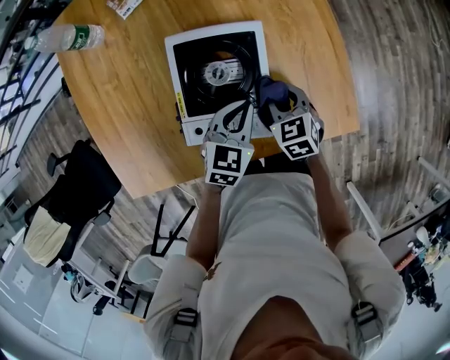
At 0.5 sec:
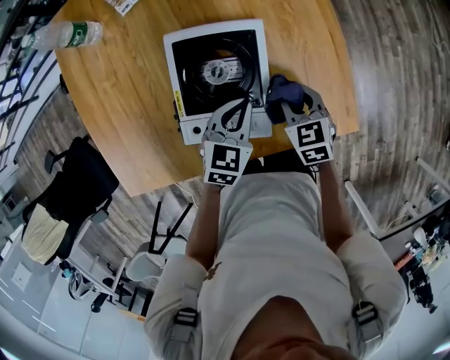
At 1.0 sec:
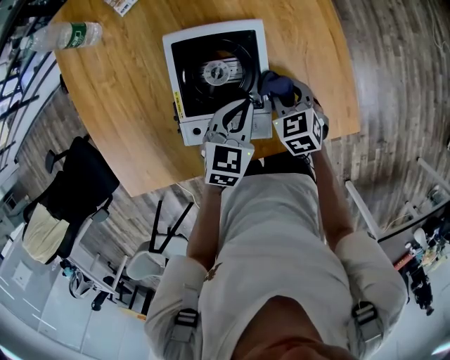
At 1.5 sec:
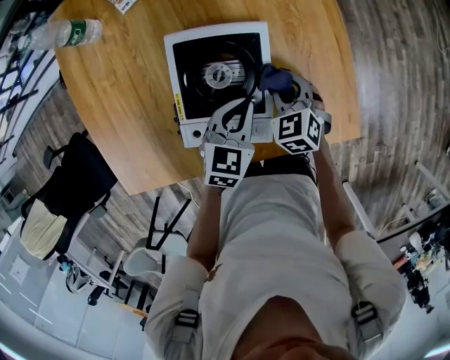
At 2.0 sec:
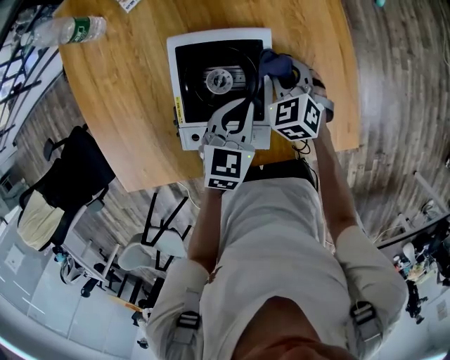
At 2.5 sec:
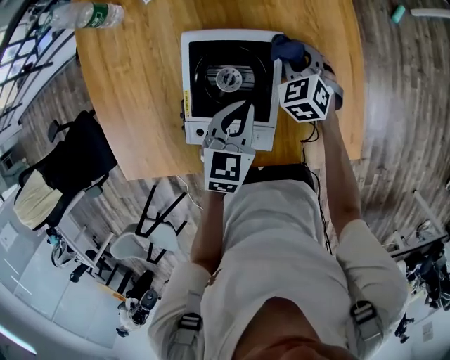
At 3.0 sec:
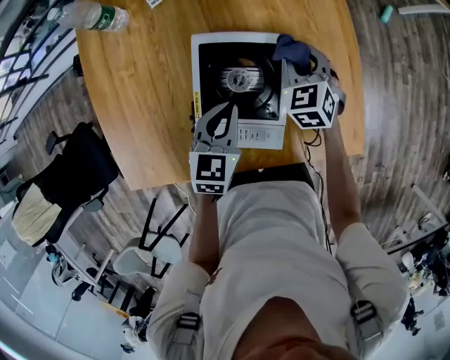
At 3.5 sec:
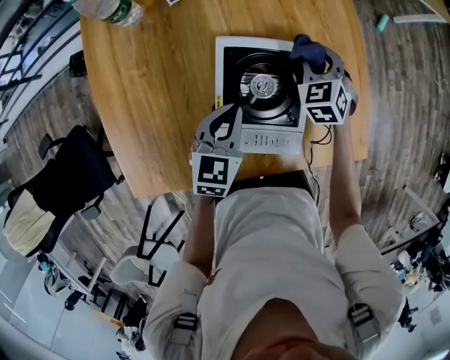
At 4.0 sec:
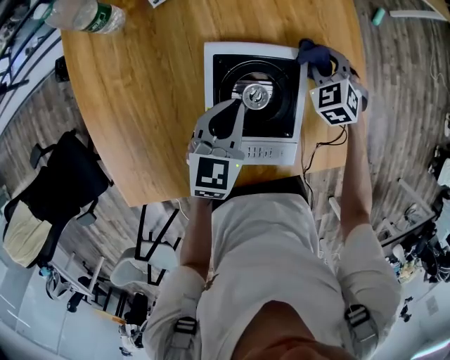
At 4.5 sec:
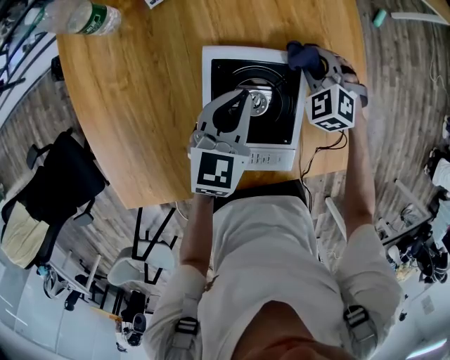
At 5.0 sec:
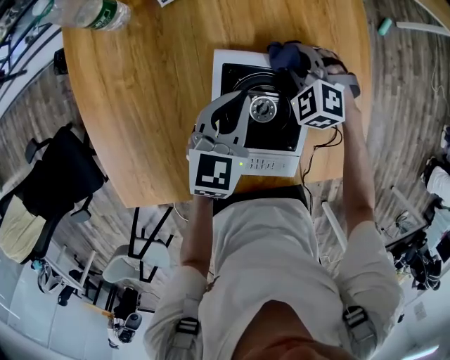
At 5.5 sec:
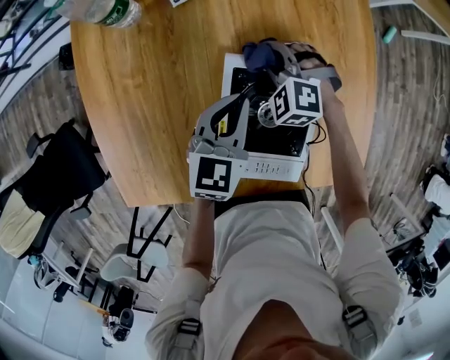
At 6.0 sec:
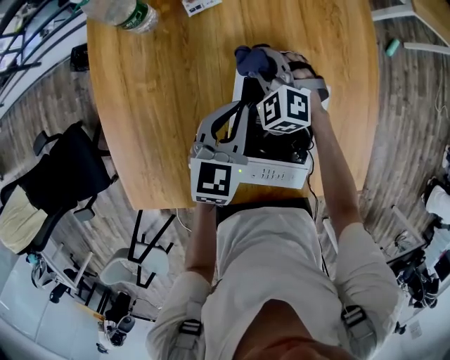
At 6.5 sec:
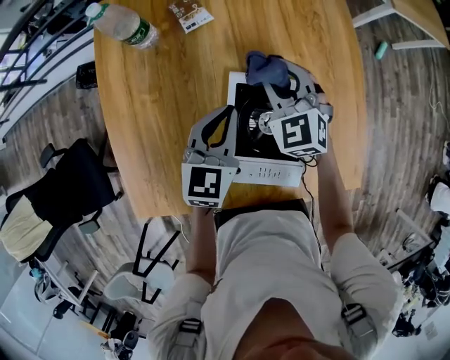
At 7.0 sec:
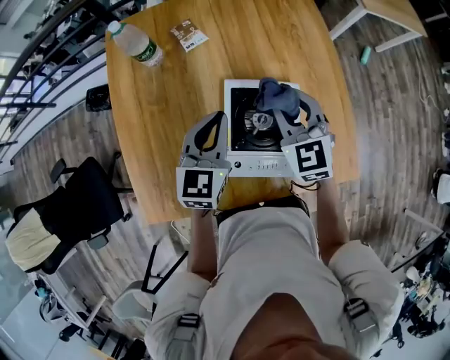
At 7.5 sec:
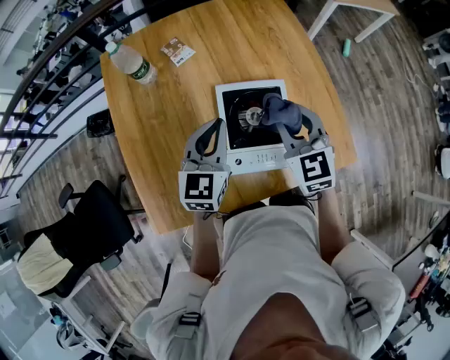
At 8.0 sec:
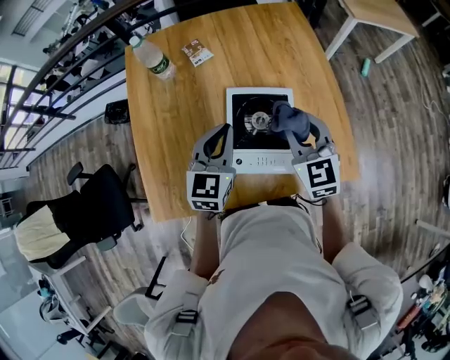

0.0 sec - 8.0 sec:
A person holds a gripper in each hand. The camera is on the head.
0.0 sec - 2.0 sec: The right gripper goes some 10 cm forward.
2.0 sec - 4.0 sec: The left gripper moves to the left, approximately 10 cm, while the right gripper is displaced forward by about 10 cm.
4.0 sec - 6.0 sec: The left gripper shifts some 5 cm to the left. Meanwhile the right gripper heads to the left, covering roughly 25 cm, and changes its angle by about 30 degrees.
6.0 sec - 8.0 sec: The left gripper travels upward and backward by roughly 20 cm; the right gripper heads upward, backward and to the right, covering roughly 35 cm, and swivels roughly 50 degrees.

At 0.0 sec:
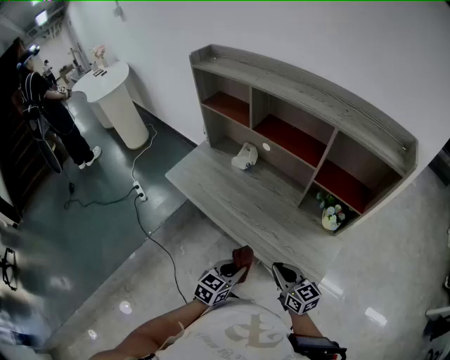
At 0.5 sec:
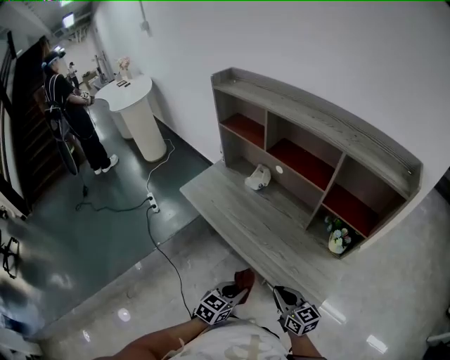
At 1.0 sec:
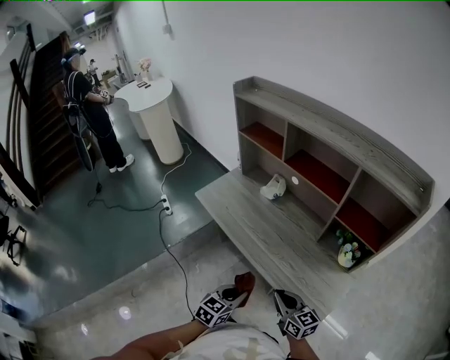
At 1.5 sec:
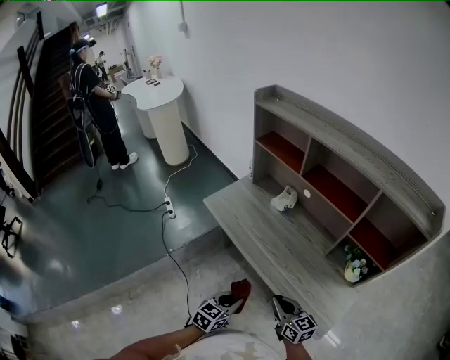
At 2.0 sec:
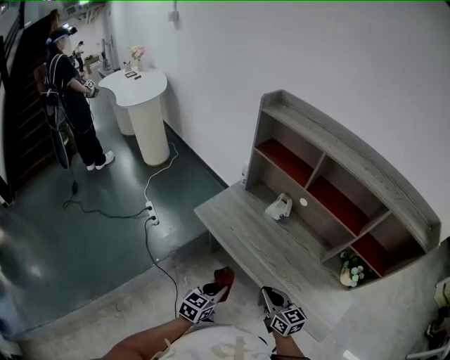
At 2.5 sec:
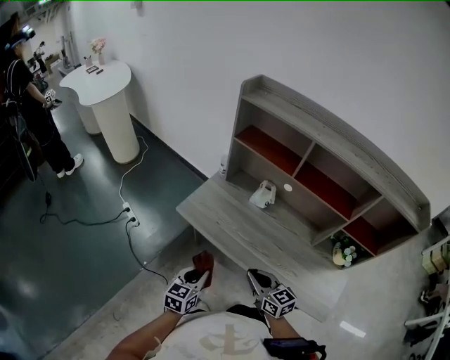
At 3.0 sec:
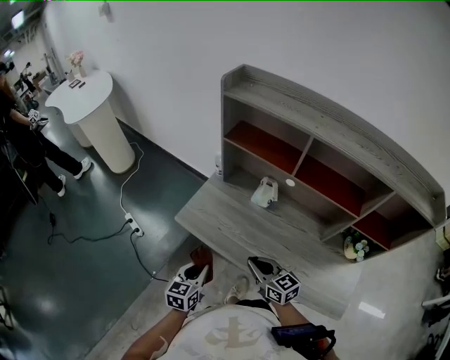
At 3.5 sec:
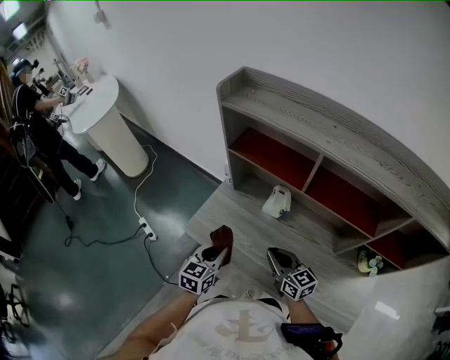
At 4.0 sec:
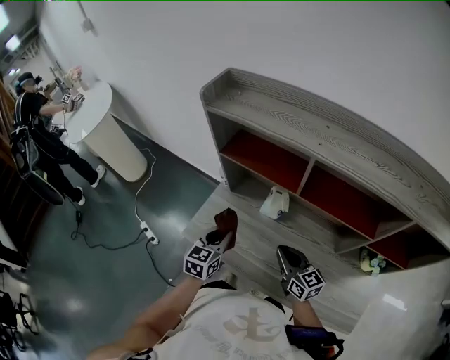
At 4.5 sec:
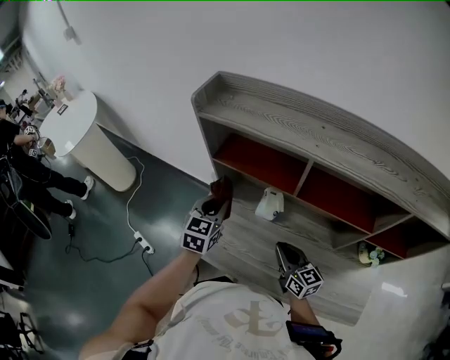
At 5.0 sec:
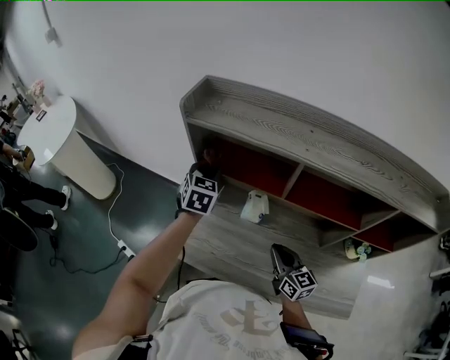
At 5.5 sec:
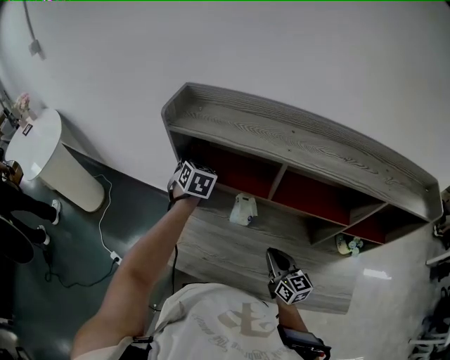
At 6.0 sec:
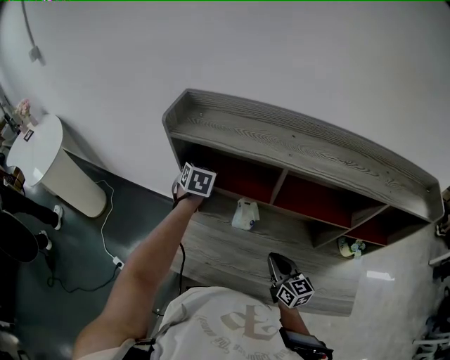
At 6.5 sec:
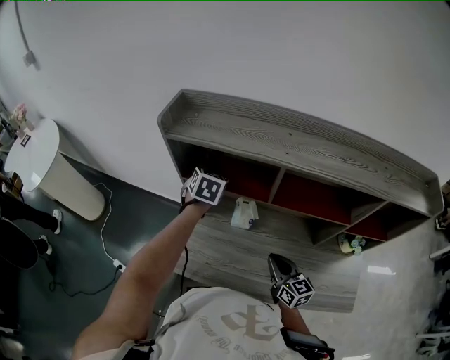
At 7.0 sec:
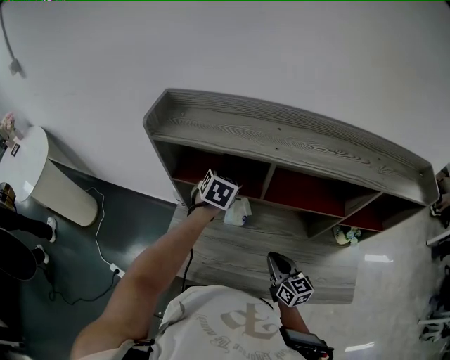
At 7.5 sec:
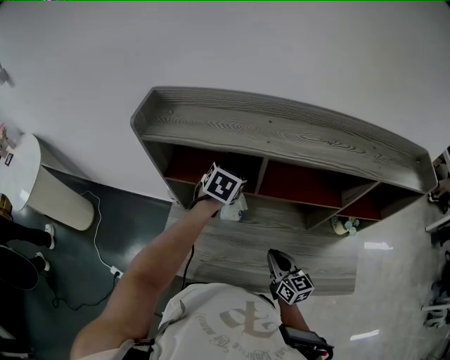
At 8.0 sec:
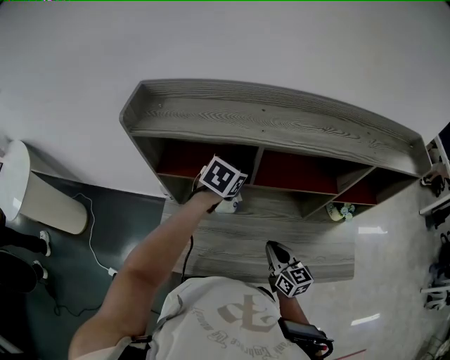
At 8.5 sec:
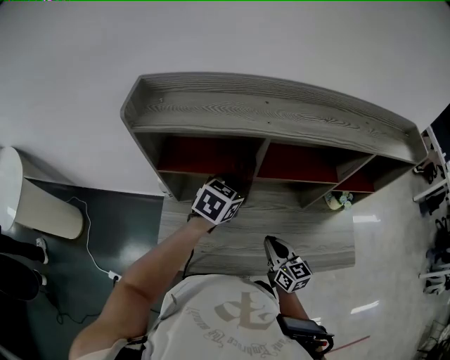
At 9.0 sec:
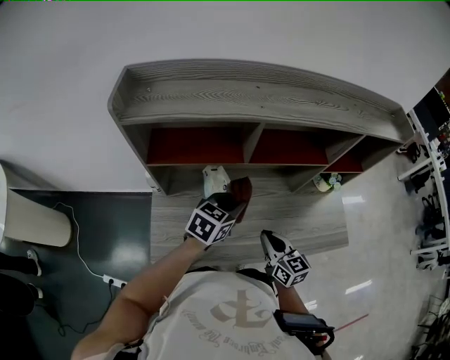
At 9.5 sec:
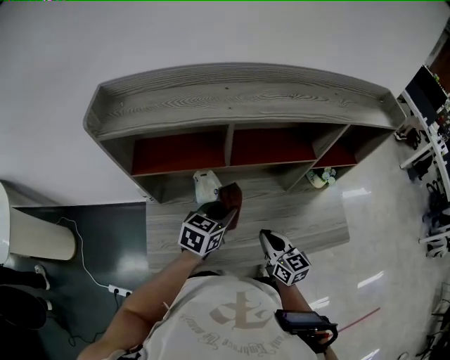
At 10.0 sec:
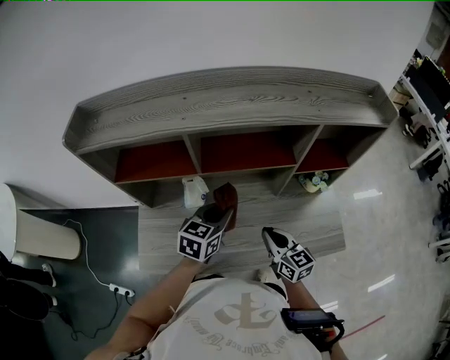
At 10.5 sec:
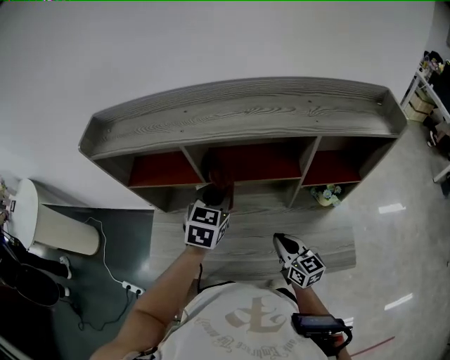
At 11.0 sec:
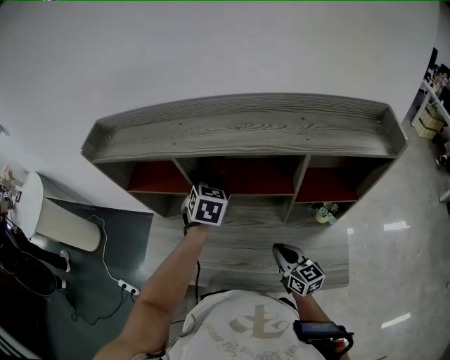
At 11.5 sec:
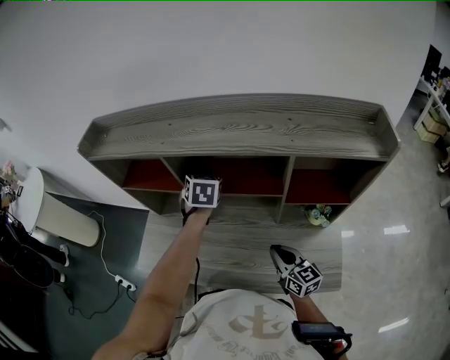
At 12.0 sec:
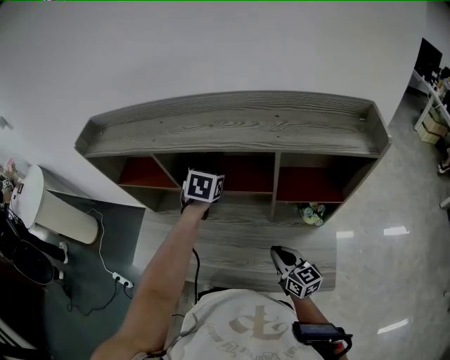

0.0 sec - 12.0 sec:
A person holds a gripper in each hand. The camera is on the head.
0.0 sec - 2.0 sec: The left gripper heads to the left, covering about 25 cm. The right gripper travels to the left and forward by some 20 cm.
2.0 sec - 4.0 sec: The grippers both shift forward by roughly 30 cm.
4.0 sec - 6.0 sec: The left gripper moves forward, approximately 30 cm, and rotates some 20 degrees.
6.0 sec - 8.0 sec: The left gripper moves roughly 20 cm, and swivels about 40 degrees.
8.0 sec - 10.0 sec: The right gripper shifts approximately 10 cm to the right, while the left gripper moves to the right and backward, roughly 20 cm.
10.0 sec - 12.0 sec: The right gripper ends up some 15 cm from where it was. Meanwhile the left gripper changes place by roughly 20 cm, and changes its angle by approximately 30 degrees.

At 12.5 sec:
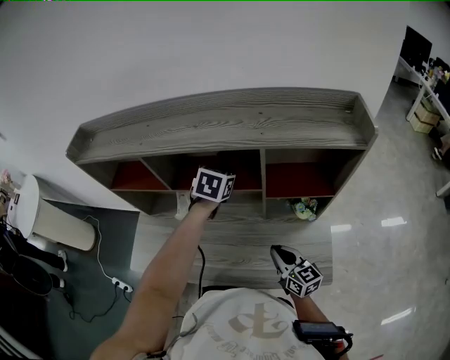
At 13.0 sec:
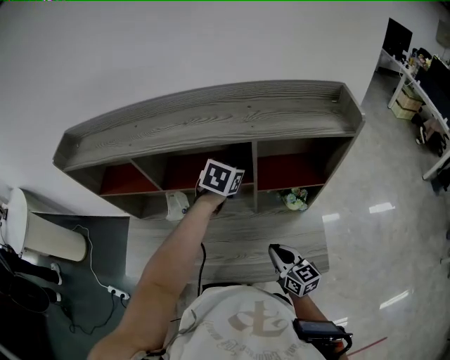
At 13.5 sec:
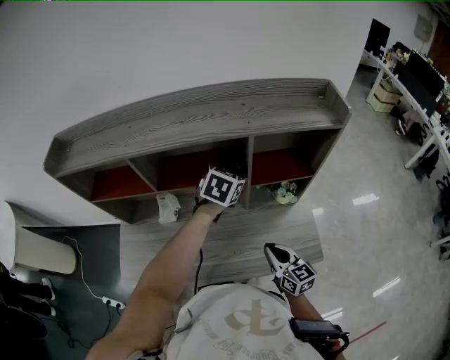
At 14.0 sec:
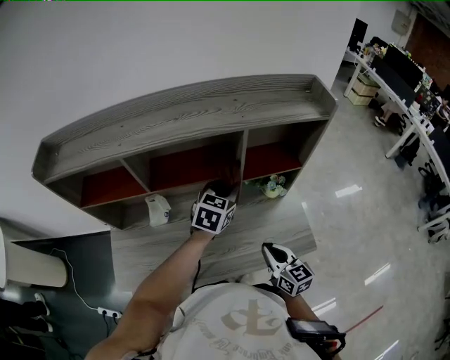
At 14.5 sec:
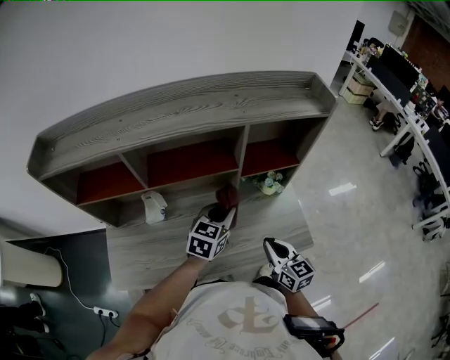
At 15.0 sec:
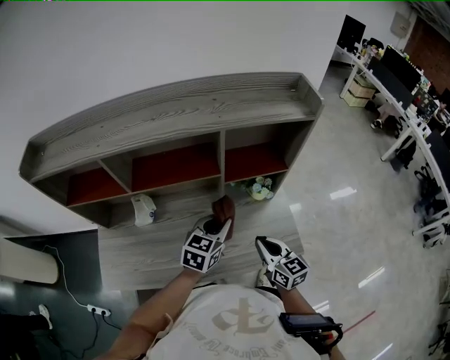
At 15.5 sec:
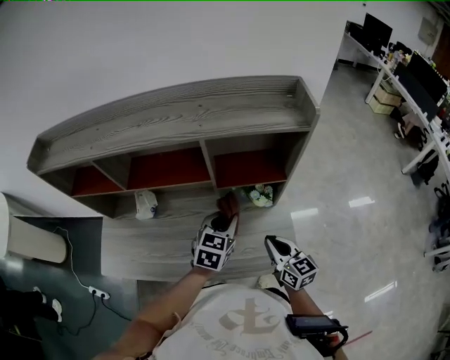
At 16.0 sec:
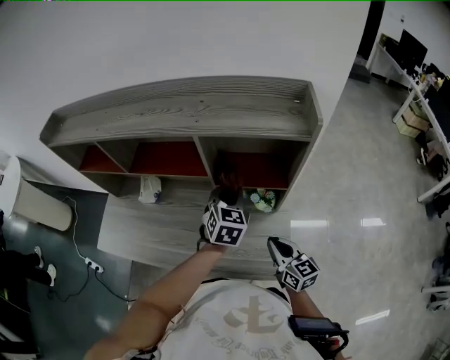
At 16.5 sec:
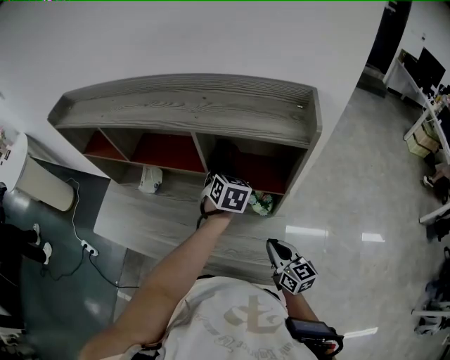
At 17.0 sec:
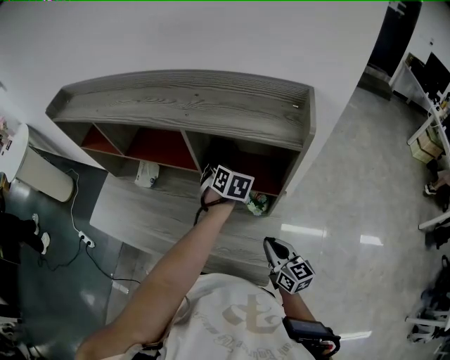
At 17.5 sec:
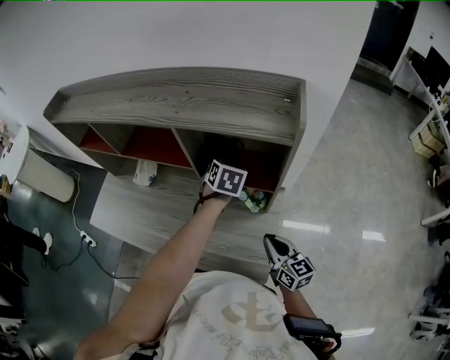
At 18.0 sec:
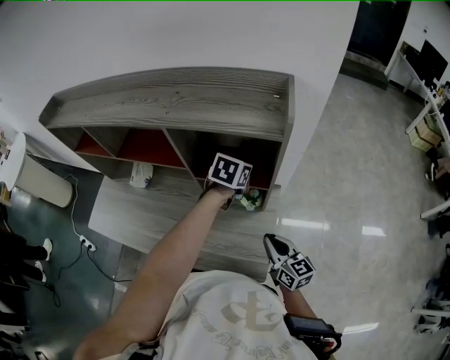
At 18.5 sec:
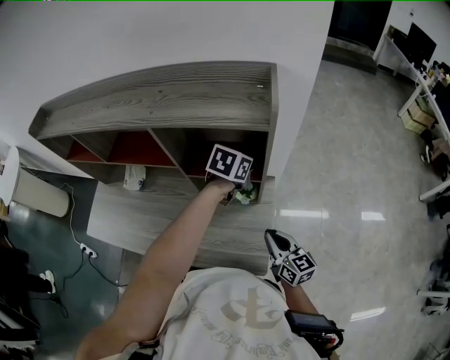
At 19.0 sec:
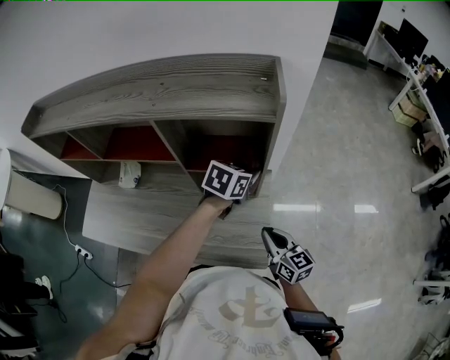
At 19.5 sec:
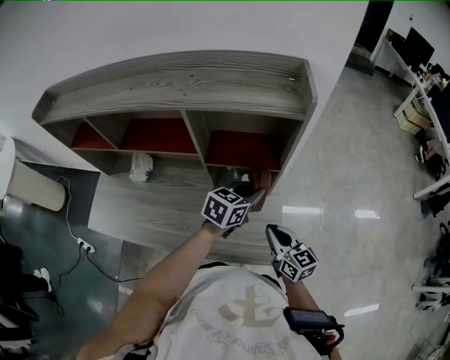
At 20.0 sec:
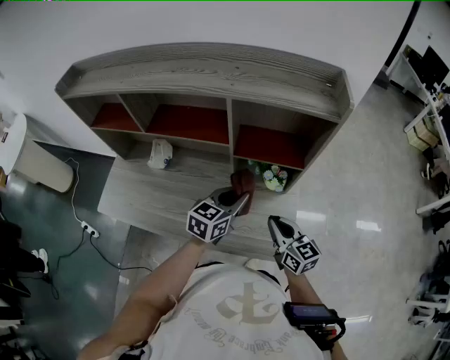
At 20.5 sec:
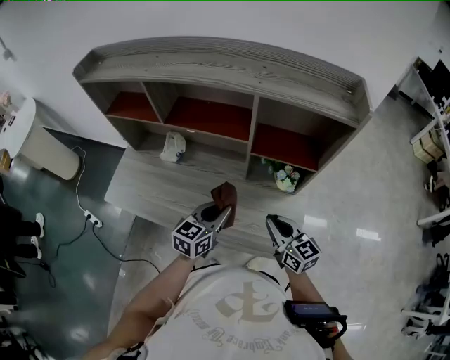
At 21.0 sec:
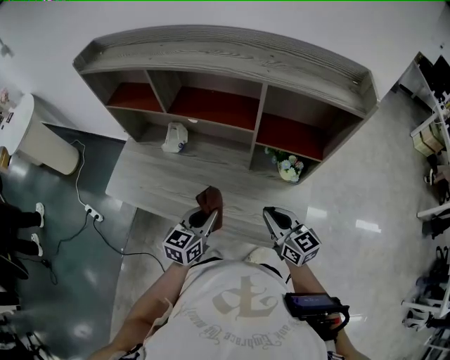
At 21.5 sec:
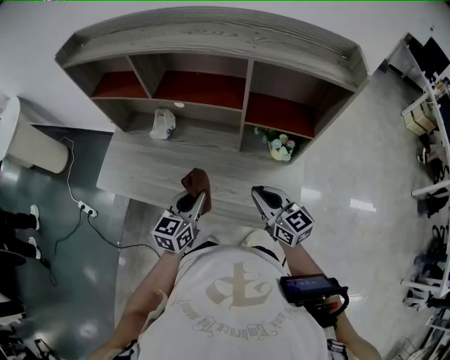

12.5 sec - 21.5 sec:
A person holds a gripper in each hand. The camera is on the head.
12.5 sec - 14.5 sec: The left gripper shifts by roughly 20 cm, and changes its angle by some 30 degrees, while the right gripper changes place by approximately 10 cm, and turns by about 20 degrees.
14.5 sec - 17.0 sec: The right gripper moves some 25 cm, and swivels about 30 degrees. The left gripper changes place by approximately 25 cm, and swivels about 60 degrees.
17.0 sec - 19.5 sec: The left gripper ends up roughly 20 cm from where it was, and swivels some 60 degrees.
19.5 sec - 21.5 sec: The left gripper travels to the left and backward by about 35 cm, and rotates some 30 degrees. Meanwhile the right gripper moves to the left, approximately 15 cm.
